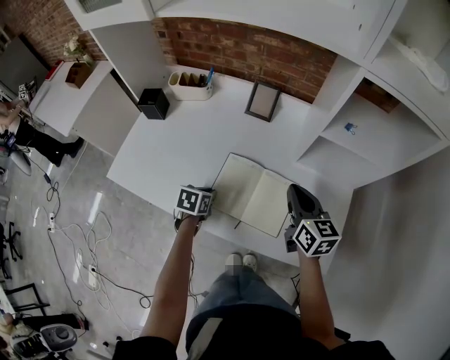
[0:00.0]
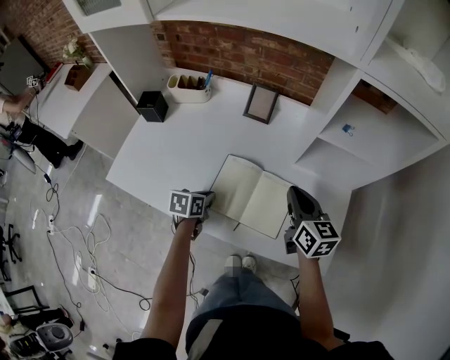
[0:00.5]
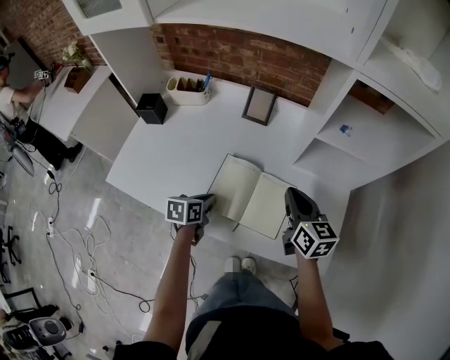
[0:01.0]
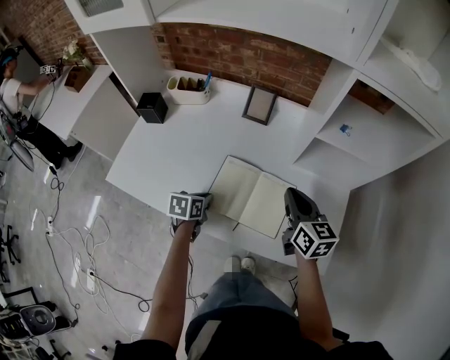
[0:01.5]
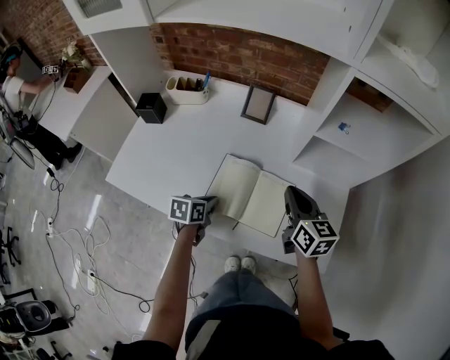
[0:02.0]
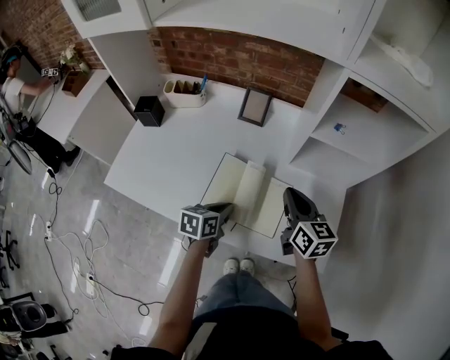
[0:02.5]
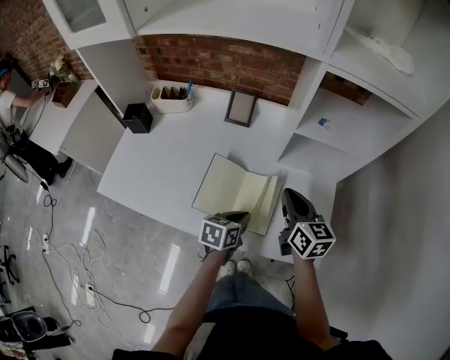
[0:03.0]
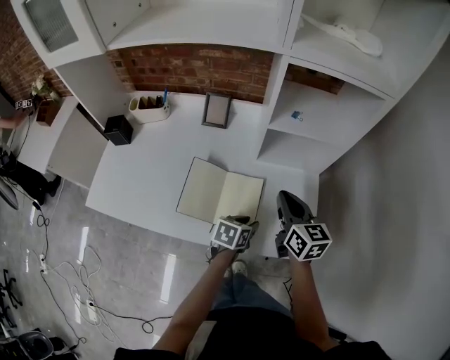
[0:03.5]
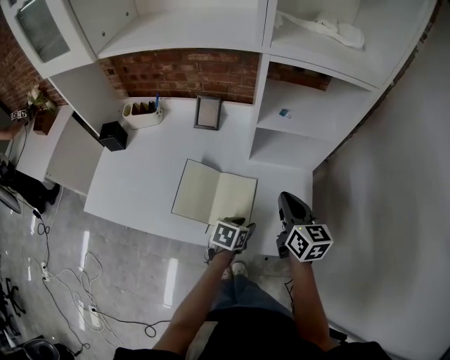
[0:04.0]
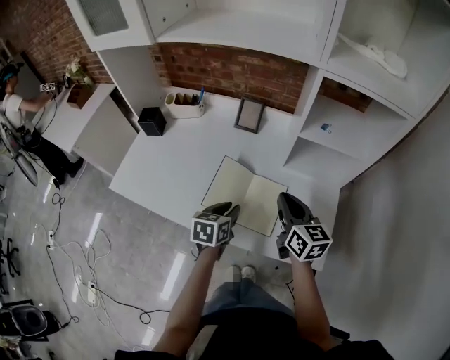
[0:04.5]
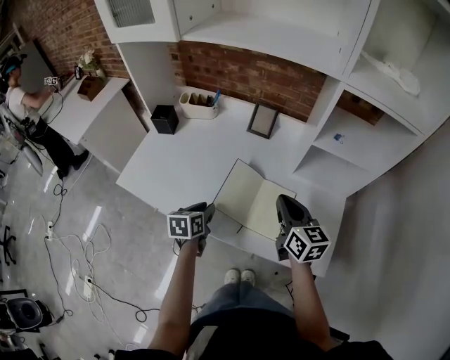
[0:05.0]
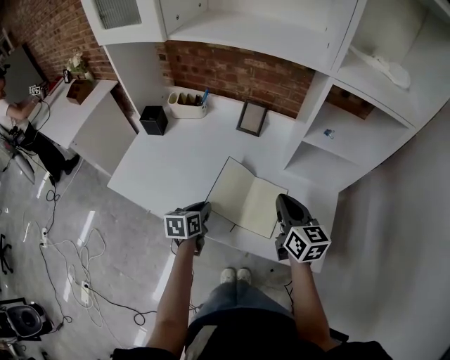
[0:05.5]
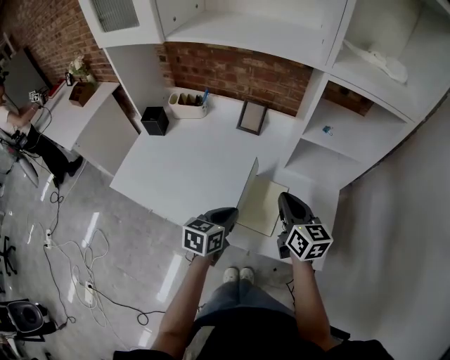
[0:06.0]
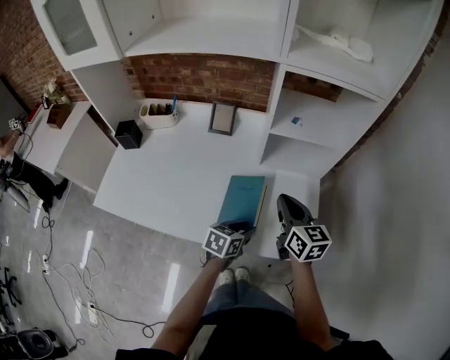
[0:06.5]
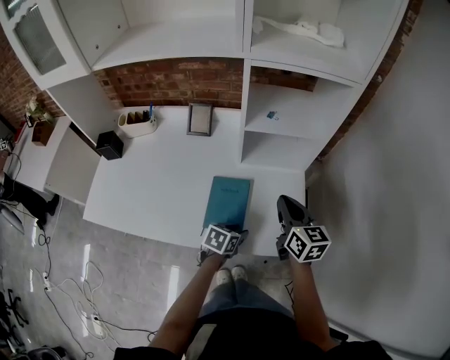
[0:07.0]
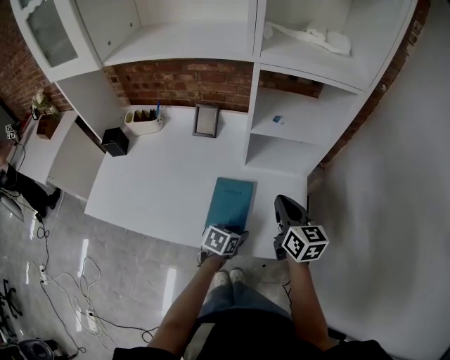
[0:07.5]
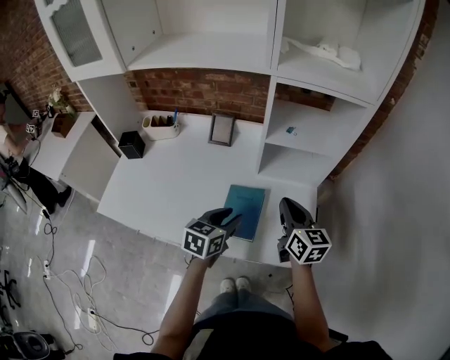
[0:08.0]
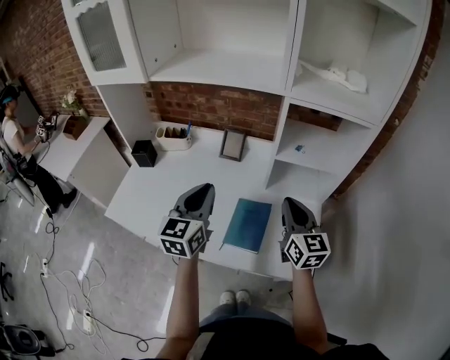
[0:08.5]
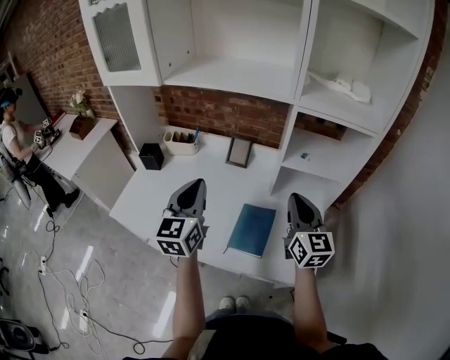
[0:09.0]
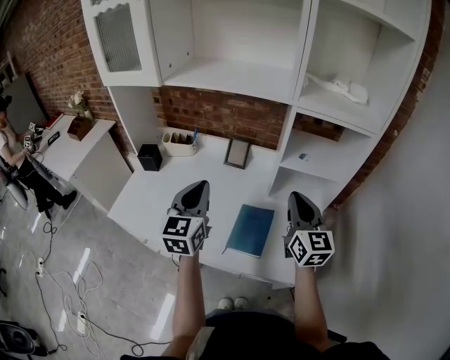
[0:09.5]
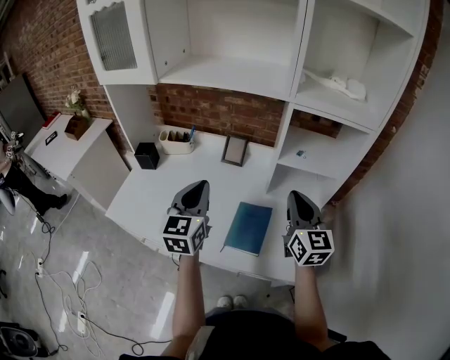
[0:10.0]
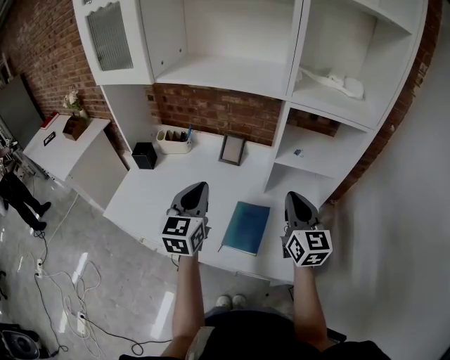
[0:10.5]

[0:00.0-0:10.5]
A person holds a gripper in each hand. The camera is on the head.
0:00.0 to 0:02.0: The grippers move only a little.
0:02.0 to 0:04.0: The right gripper heads to the right, covering some 10 cm. Meanwhile the left gripper is displaced to the right by about 25 cm, swivels roughly 20 degrees, and opens its fingers.
0:04.0 to 0:06.5: The left gripper swings up and down, some 10 cm each way, with 3 reversals, and closes, then reopens.
0:06.5 to 0:08.5: The right gripper is displaced upward by approximately 10 cm, while the left gripper travels upward by approximately 25 cm, angles its fingers upward, by about 30 degrees, and closes its fingers.
0:08.5 to 0:10.5: The grippers stay close to where they were, moving slightly.

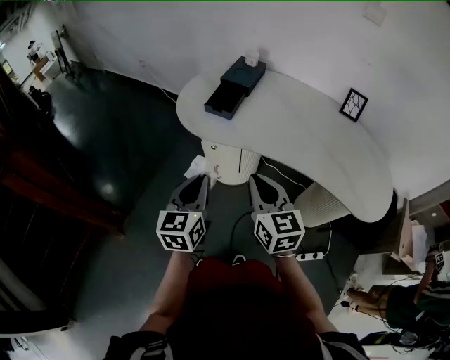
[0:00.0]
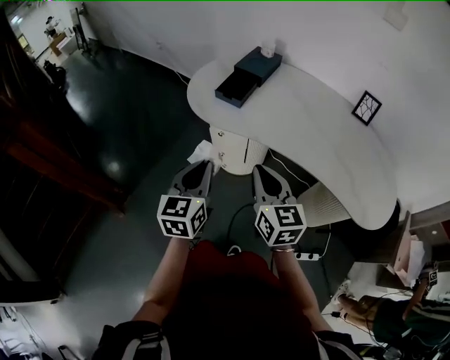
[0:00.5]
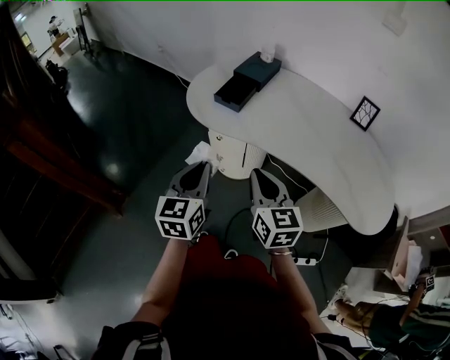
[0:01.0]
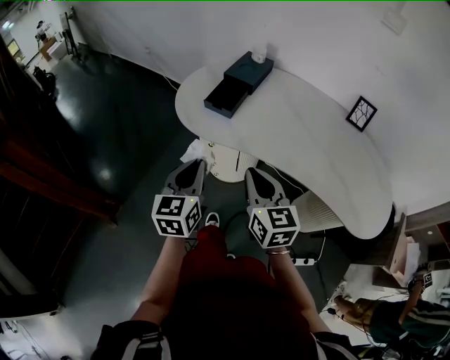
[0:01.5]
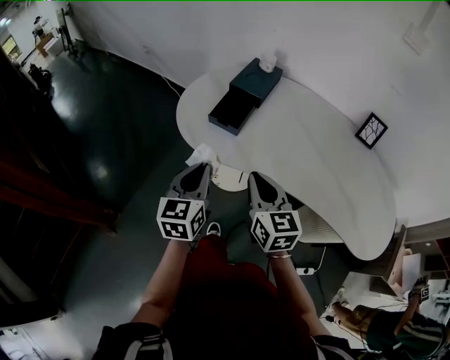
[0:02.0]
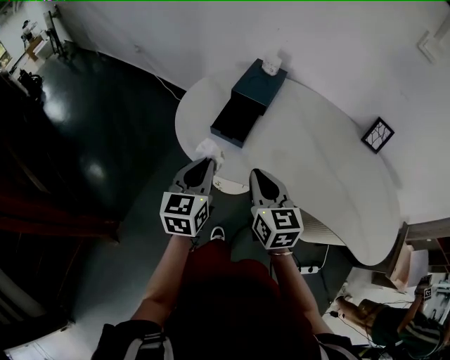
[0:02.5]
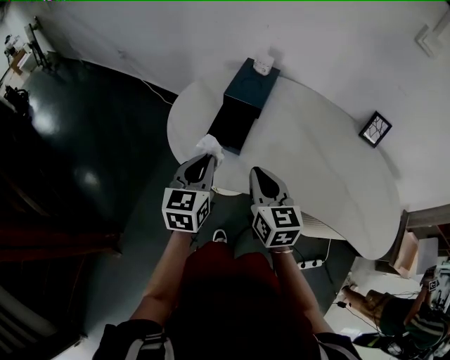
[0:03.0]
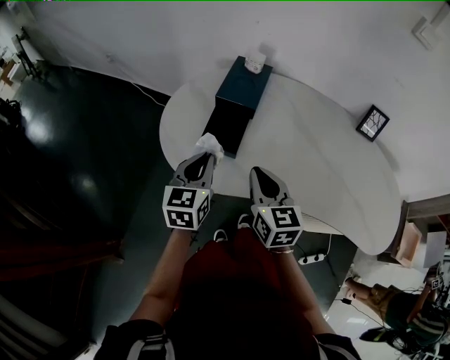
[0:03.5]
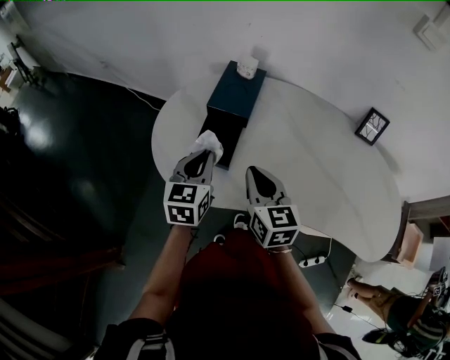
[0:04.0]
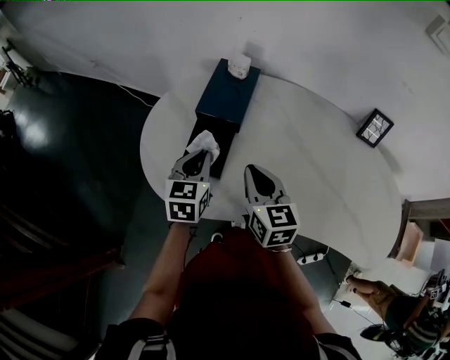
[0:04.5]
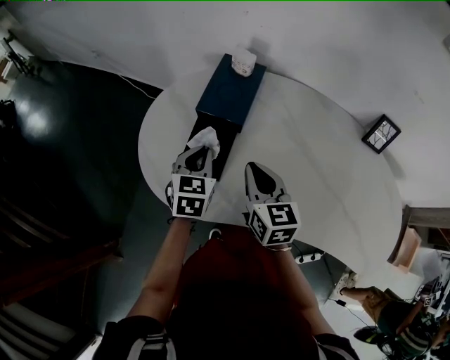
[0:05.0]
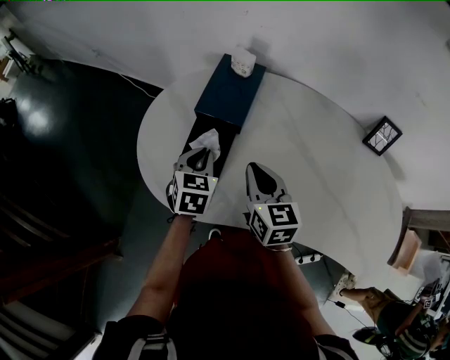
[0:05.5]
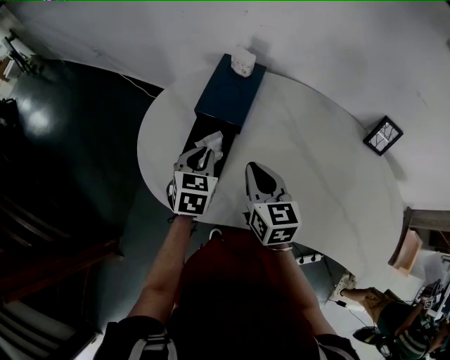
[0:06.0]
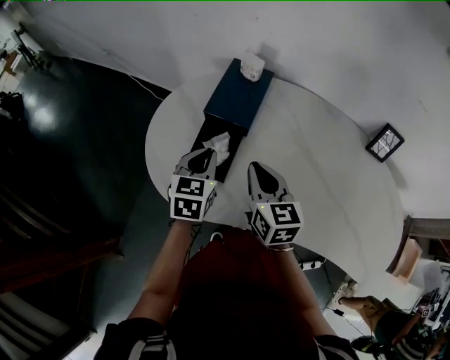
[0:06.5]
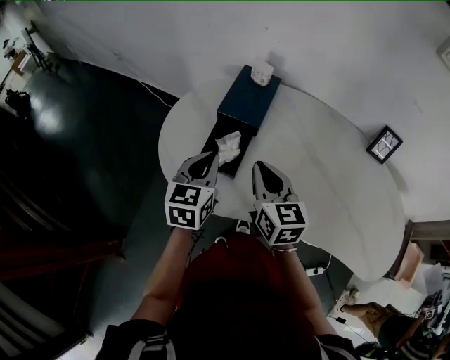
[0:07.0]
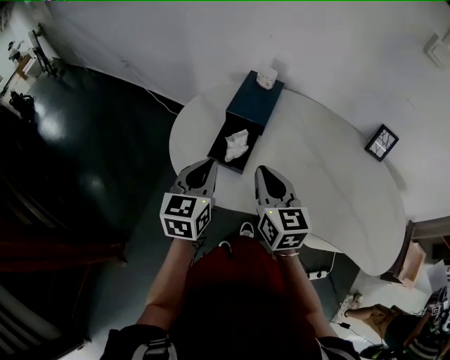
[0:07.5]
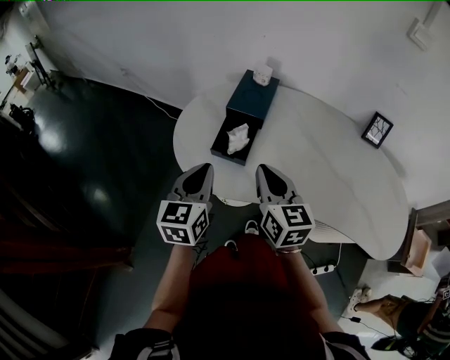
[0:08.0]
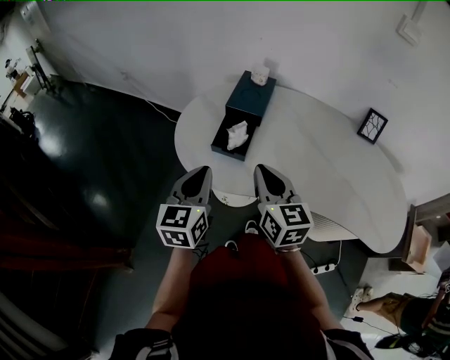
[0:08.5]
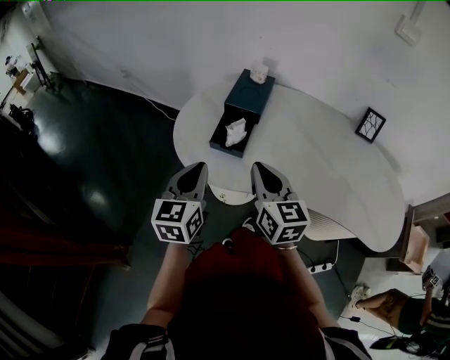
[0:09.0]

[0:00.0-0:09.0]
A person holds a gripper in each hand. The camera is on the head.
0:00.0 to 0:02.0: Both grippers move forward, roughly 15 cm.
0:02.0 to 0:04.5: Both grippers move forward, about 25 cm.
0:04.5 to 0:07.0: The left gripper changes place by roughly 5 cm.
0:07.0 to 0:09.0: The left gripper travels backward, to the left and upward by some 15 cm; the right gripper shifts approximately 10 cm backward.

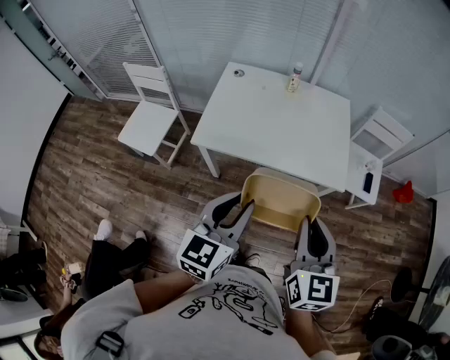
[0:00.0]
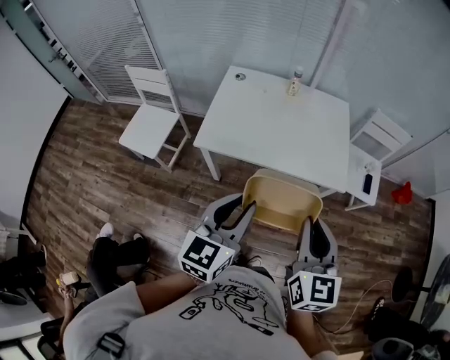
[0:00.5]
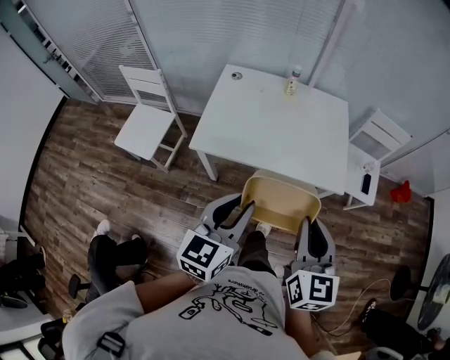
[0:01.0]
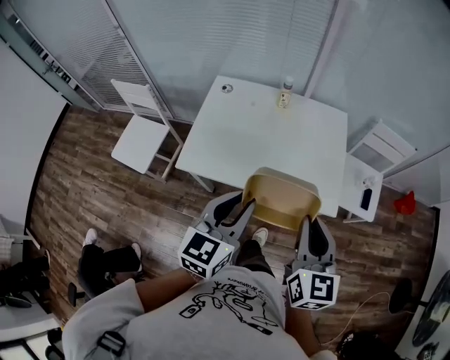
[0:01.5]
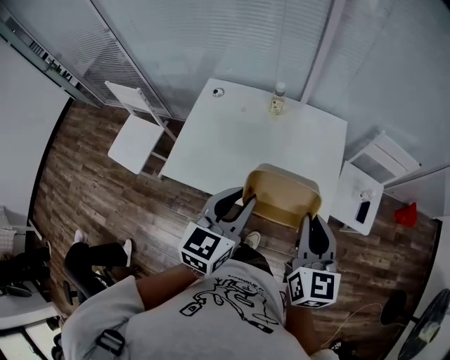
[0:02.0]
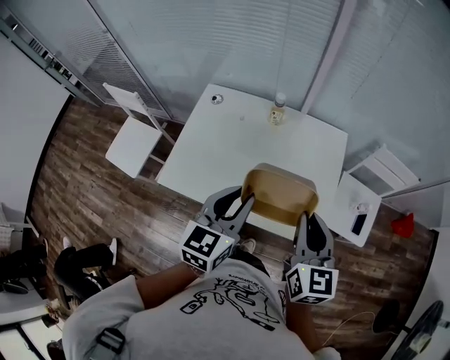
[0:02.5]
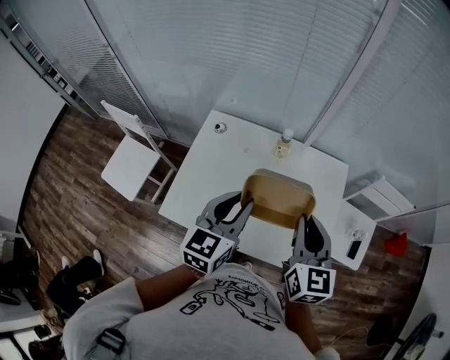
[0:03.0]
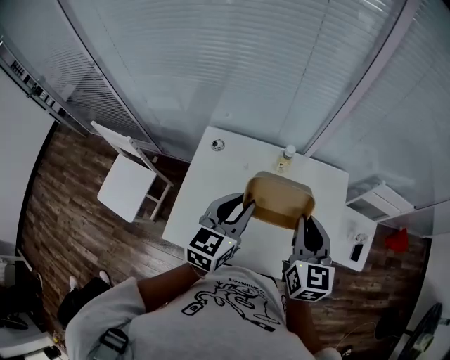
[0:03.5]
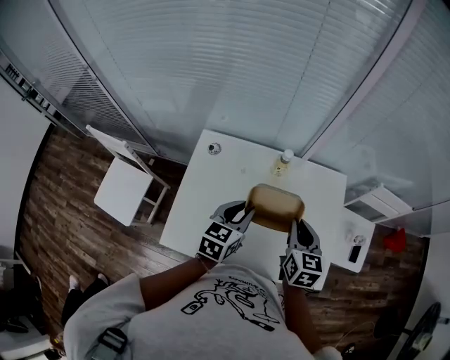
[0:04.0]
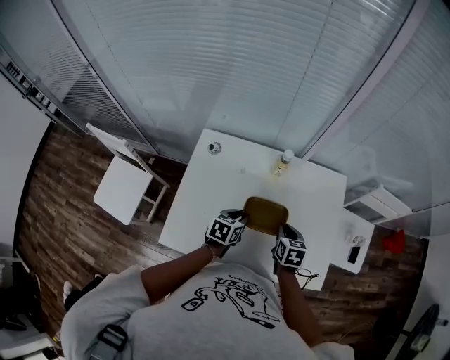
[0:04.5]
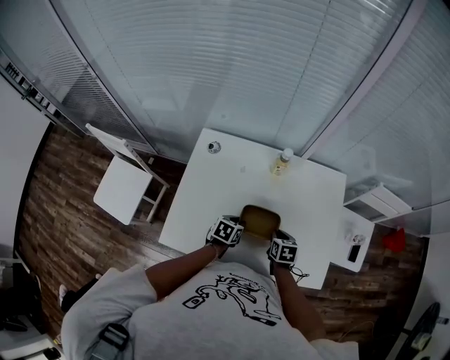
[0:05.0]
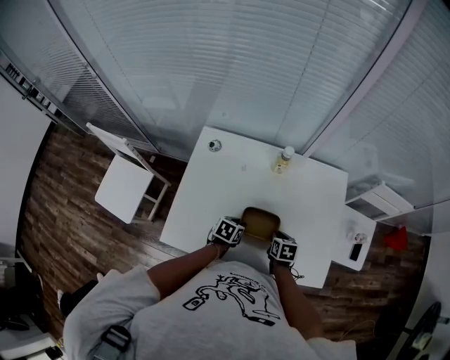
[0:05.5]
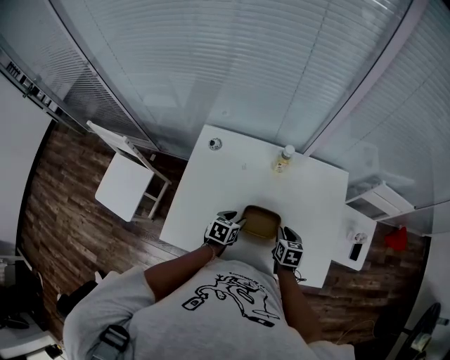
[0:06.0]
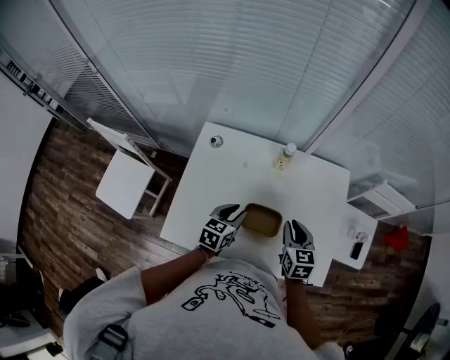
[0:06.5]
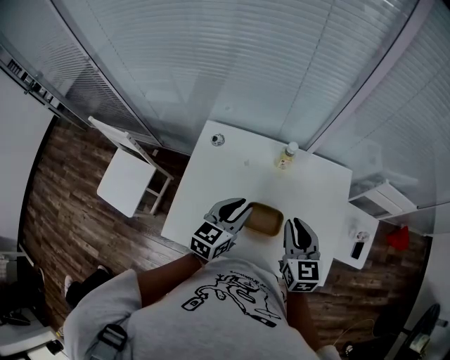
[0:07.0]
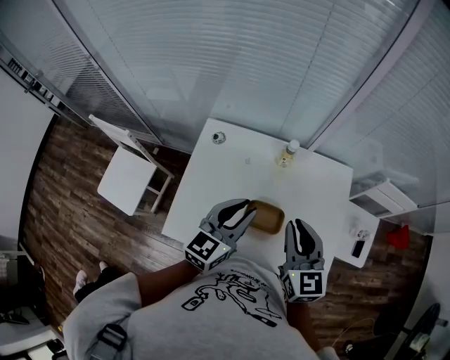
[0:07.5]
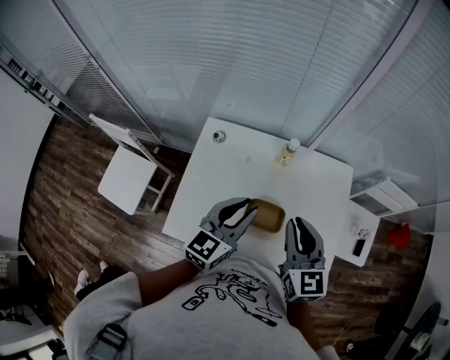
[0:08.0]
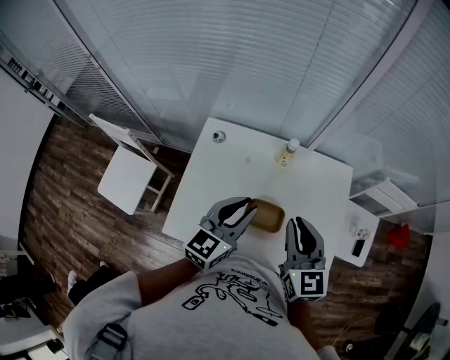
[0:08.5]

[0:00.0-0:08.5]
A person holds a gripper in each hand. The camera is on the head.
0:00.0 to 0:02.0: The two grippers go some 25 cm forward.
0:02.0 to 0:04.0: Both grippers move forward, to the left and downward, approximately 30 cm.
0:04.0 to 0:06.5: Both grippers travel together downward, roughly 10 cm.
0:06.5 to 0:08.5: Both grippers travel together upward, about 20 cm. The right gripper turns by about 20 degrees. The left gripper swivels some 30 degrees.
